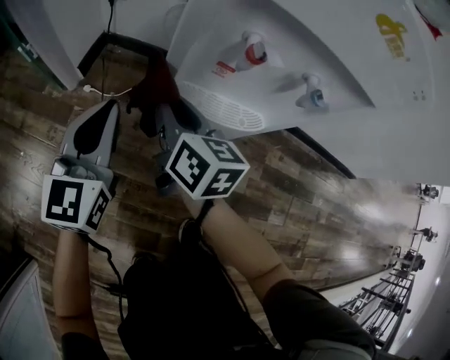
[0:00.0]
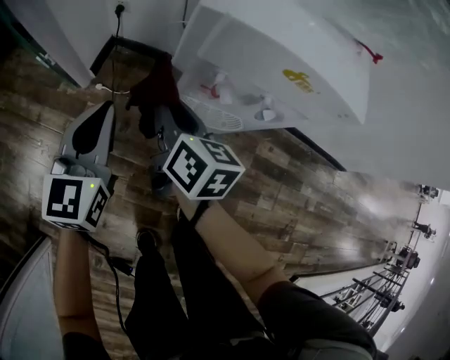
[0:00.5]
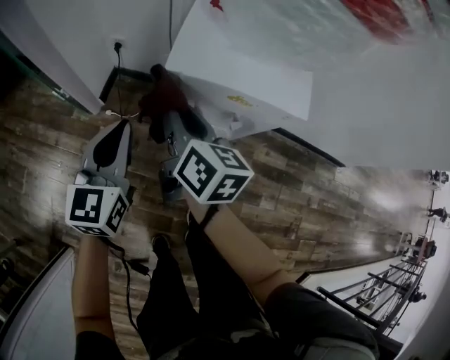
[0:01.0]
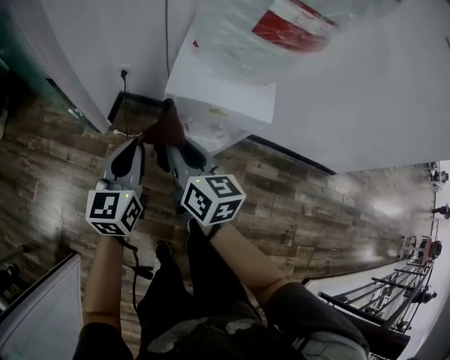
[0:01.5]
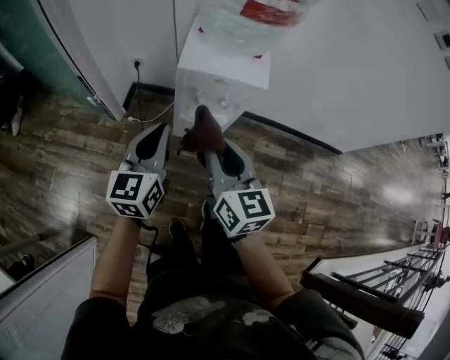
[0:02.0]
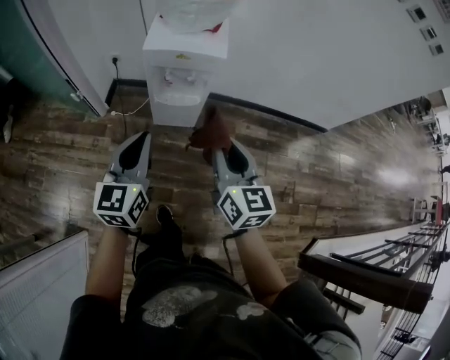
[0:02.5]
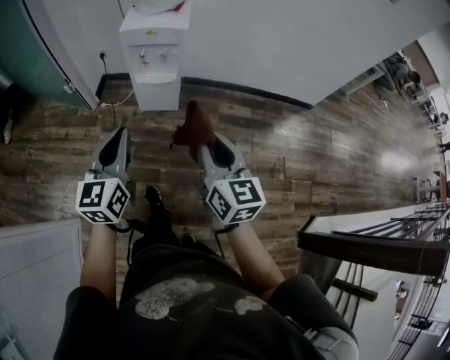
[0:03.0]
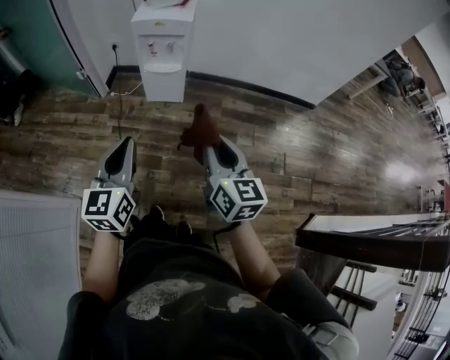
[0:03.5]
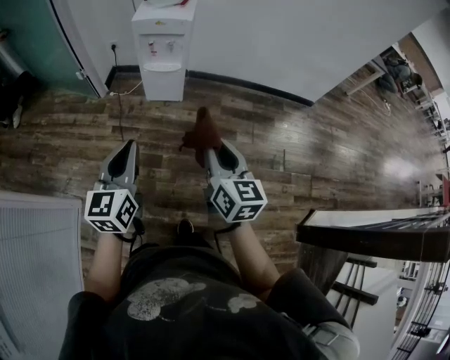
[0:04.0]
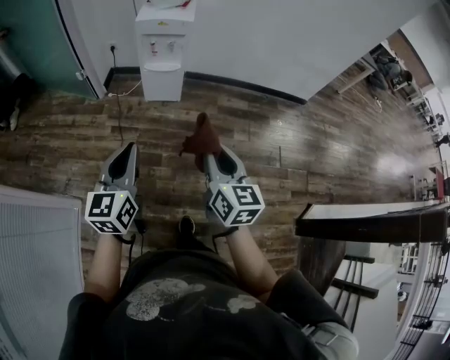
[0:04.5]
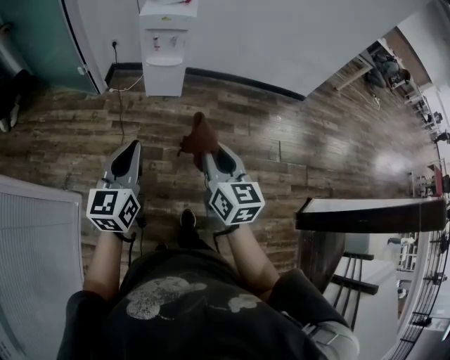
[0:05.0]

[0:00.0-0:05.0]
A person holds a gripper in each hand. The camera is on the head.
0:00.0 to 0:02.5: The left gripper travels upward and backward by about 50 cm; the right gripper travels upward, backward and to the right by about 60 cm, and turns by about 30 degrees.
0:02.5 to 0:05.0: The pair of grippers is taken backward, approximately 40 cm.

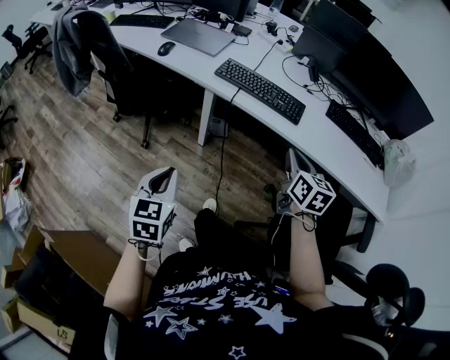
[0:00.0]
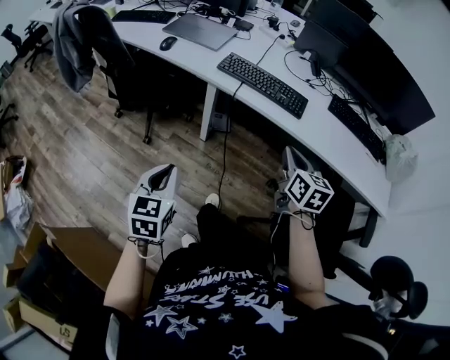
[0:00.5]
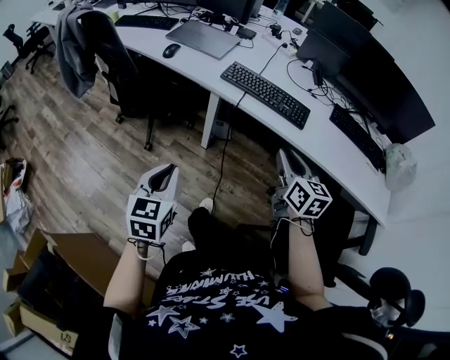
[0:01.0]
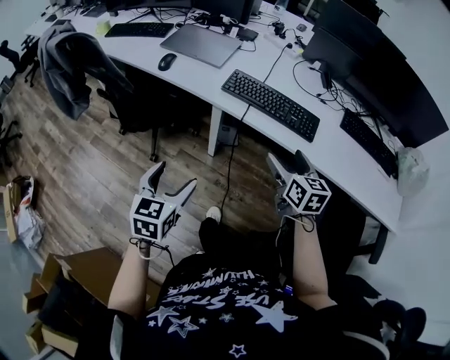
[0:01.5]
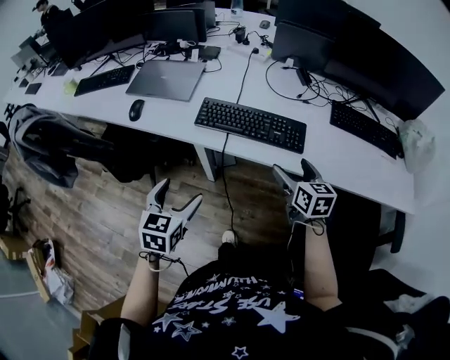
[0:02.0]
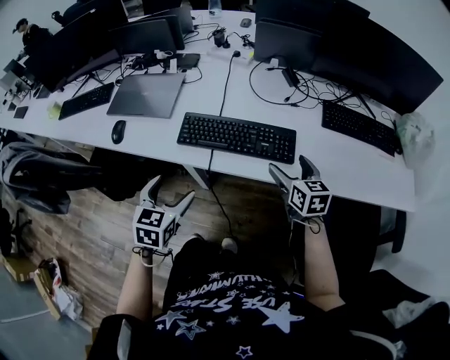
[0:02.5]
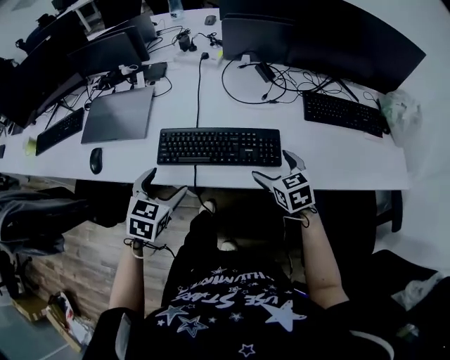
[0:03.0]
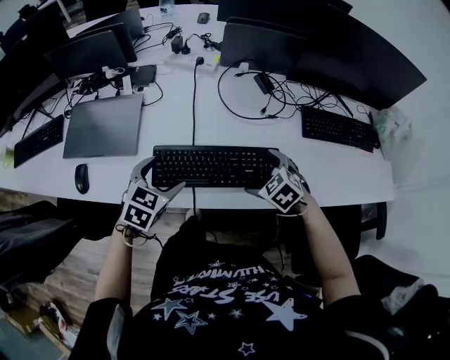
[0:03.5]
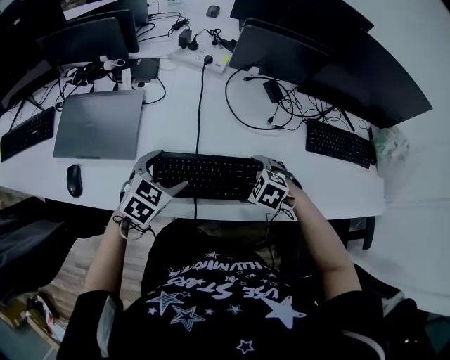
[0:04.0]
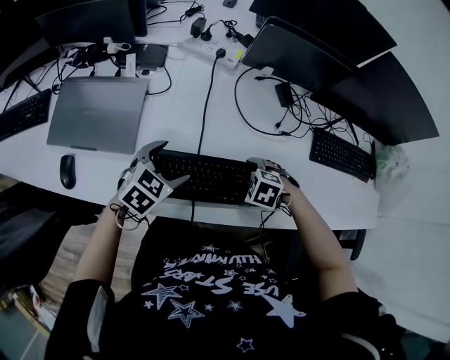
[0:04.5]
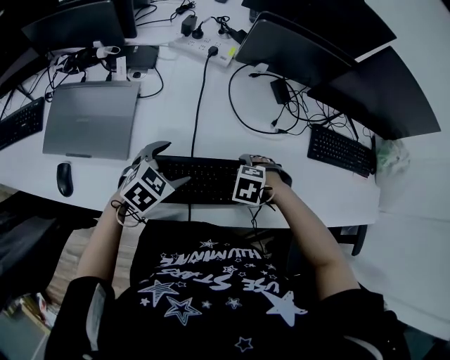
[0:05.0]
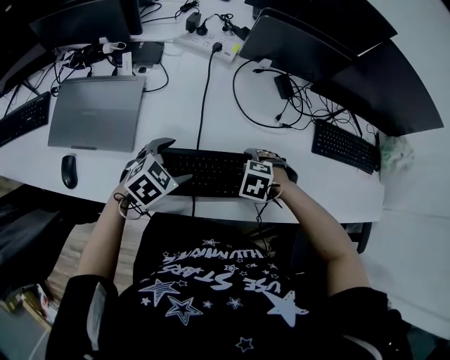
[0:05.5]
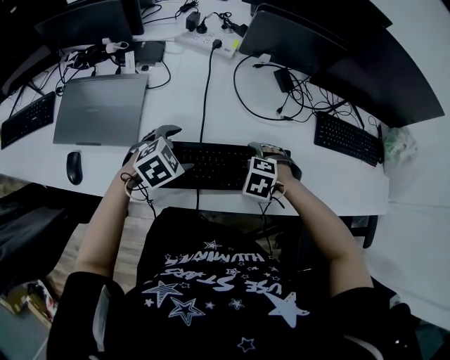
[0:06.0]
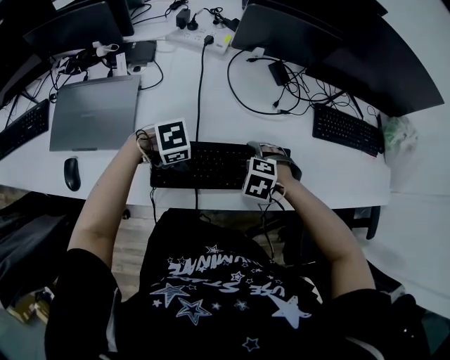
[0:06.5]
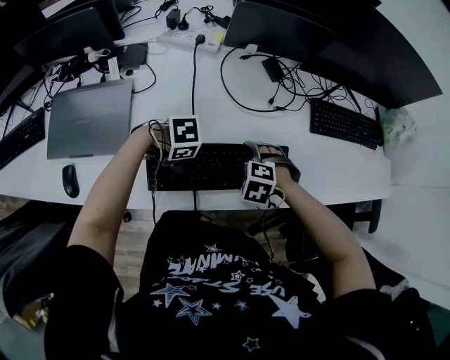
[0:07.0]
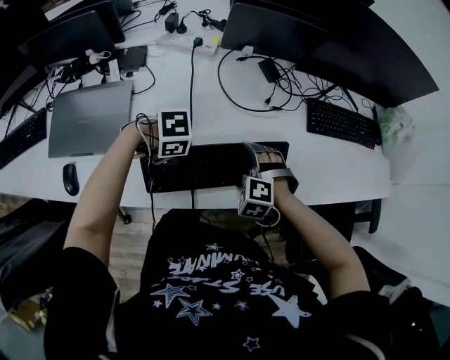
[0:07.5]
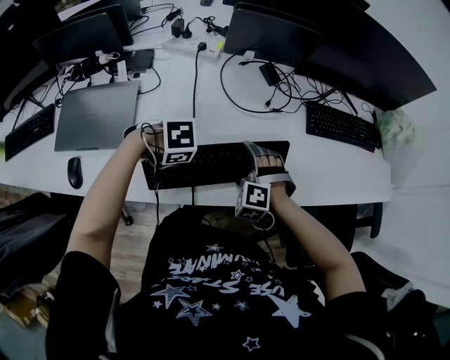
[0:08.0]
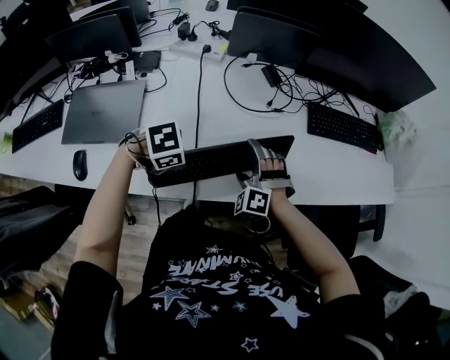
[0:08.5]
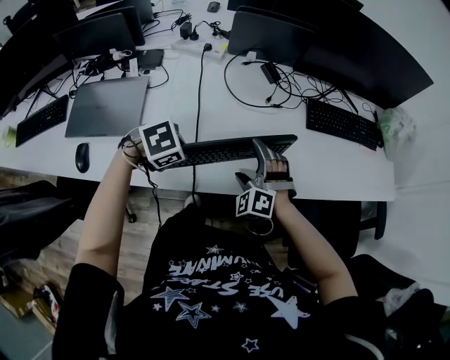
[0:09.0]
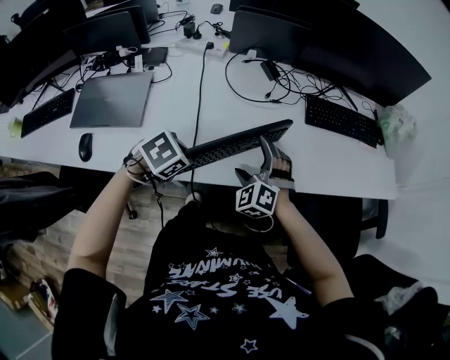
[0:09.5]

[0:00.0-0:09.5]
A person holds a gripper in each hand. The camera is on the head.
0:00.0 to 0:02.0: Both grippers travel together forward, approximately 20 cm. The right gripper opens its fingers. Meanwhile the left gripper opens.
0:02.0 to 0:04.0: The right gripper changes place by approximately 20 cm, and tips its fingers downward by approximately 50 degrees. The left gripper moves about 35 cm, and changes its angle by approximately 40 degrees.
0:04.0 to 0:05.5: The right gripper moves downward, some 5 cm.
0:05.5 to 0:07.5: The left gripper turns by approximately 50 degrees, and closes up; the right gripper heads upward, covering roughly 5 cm, and rotates roughly 20 degrees.
0:07.5 to 0:09.5: The left gripper shifts by some 10 cm, and turns by roughly 40 degrees, while the right gripper is displaced upward by about 5 cm, and tips its fingers upward by roughly 30 degrees.

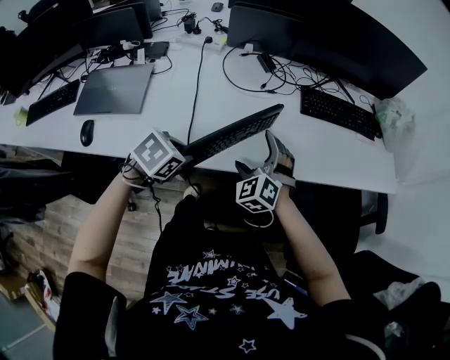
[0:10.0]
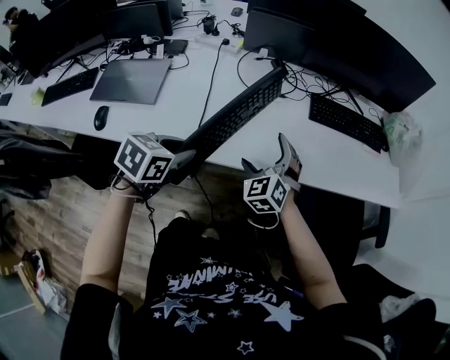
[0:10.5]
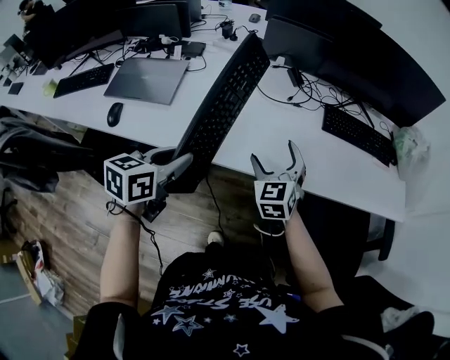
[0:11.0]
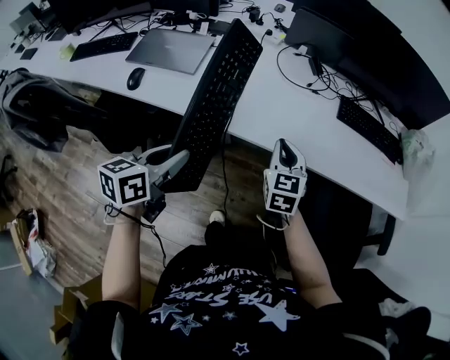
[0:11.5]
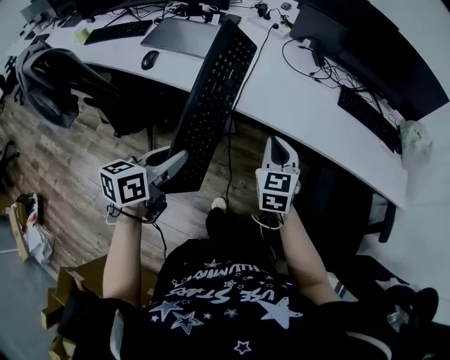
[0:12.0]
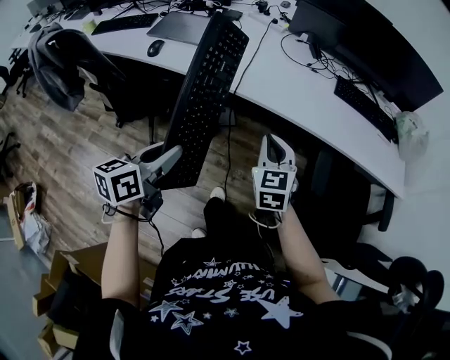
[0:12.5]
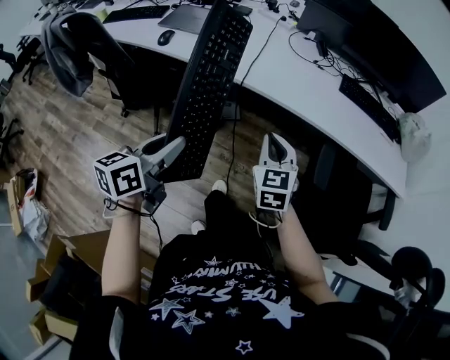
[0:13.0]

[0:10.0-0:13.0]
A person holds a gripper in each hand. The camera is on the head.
0:10.0 to 0:11.5: The left gripper heads backward and upward, covering some 20 cm, and angles its fingers upward, by some 40 degrees. Meanwhile the right gripper is displaced backward by roughly 10 cm, rotates approximately 40 degrees, and closes up.
0:11.5 to 0:13.0: Both grippers move backward, approximately 25 cm.

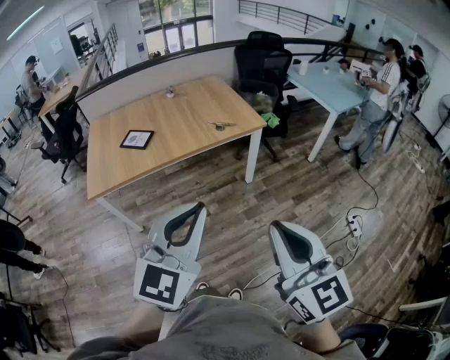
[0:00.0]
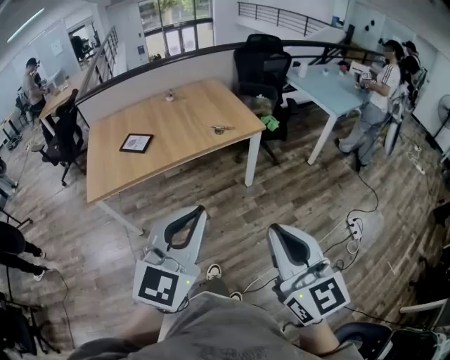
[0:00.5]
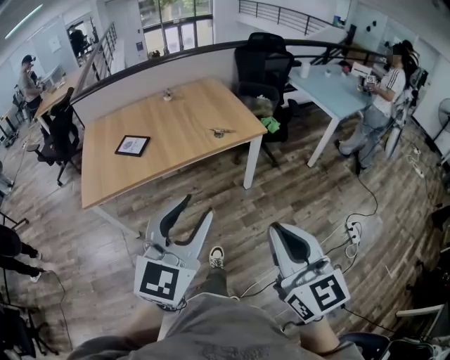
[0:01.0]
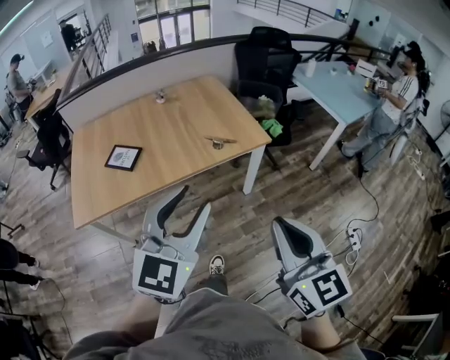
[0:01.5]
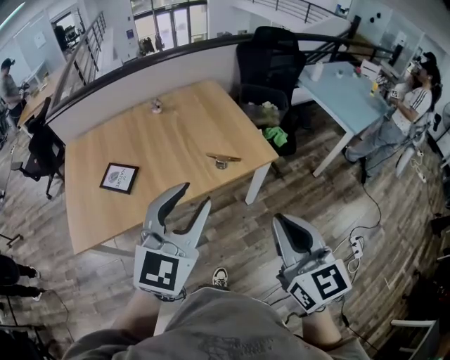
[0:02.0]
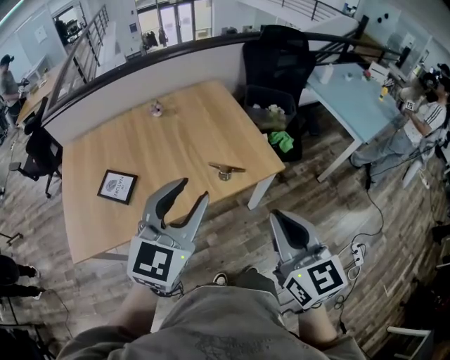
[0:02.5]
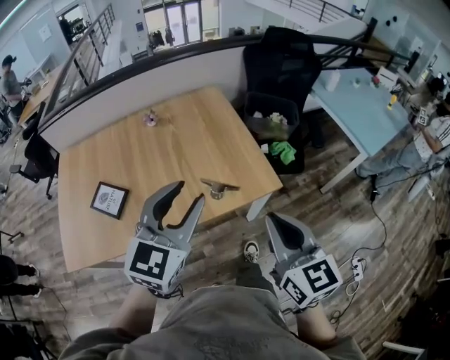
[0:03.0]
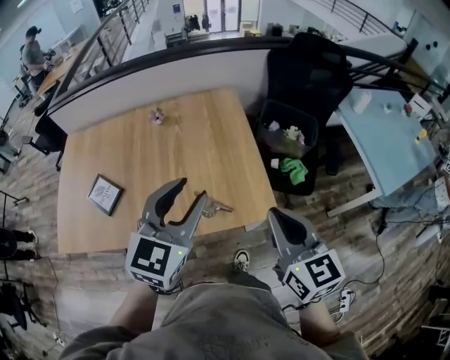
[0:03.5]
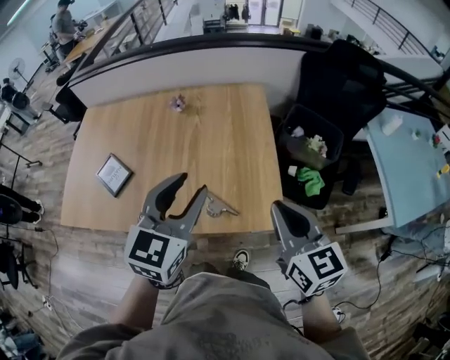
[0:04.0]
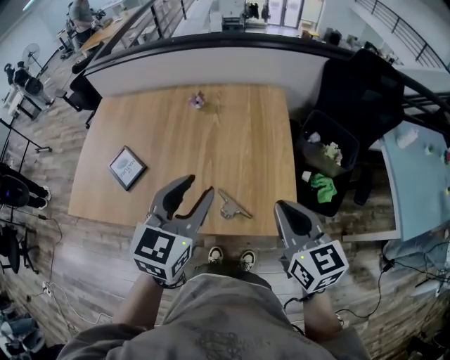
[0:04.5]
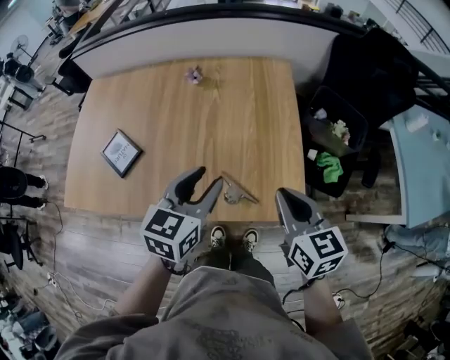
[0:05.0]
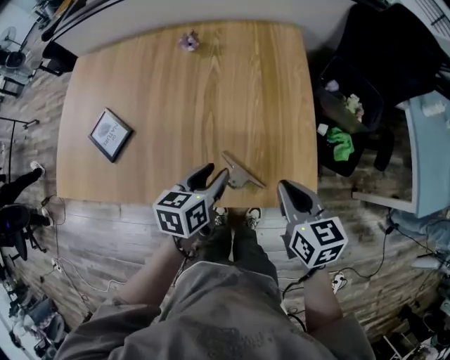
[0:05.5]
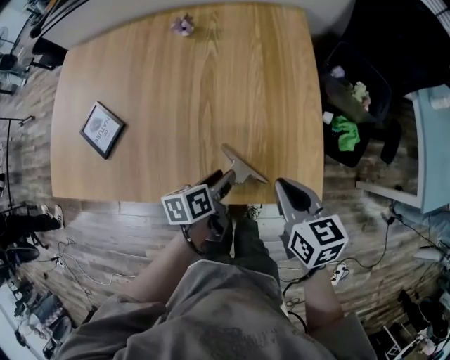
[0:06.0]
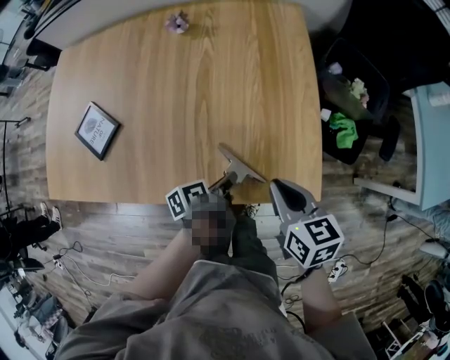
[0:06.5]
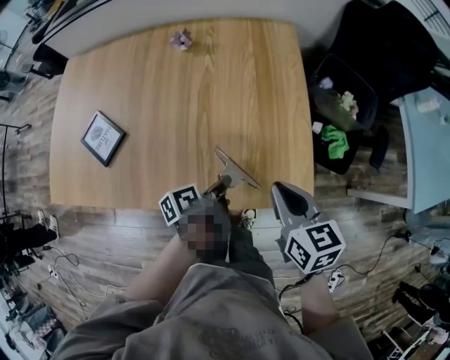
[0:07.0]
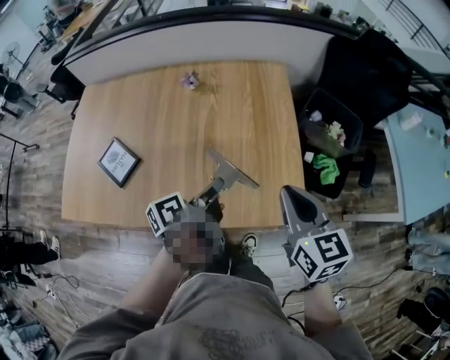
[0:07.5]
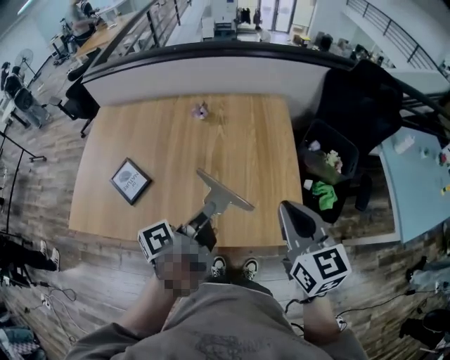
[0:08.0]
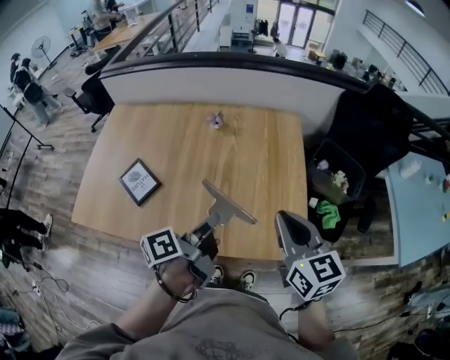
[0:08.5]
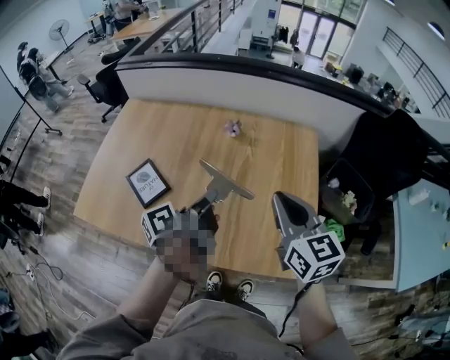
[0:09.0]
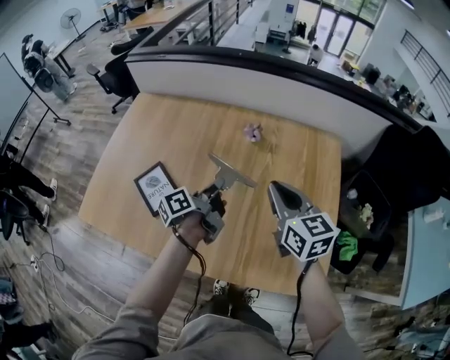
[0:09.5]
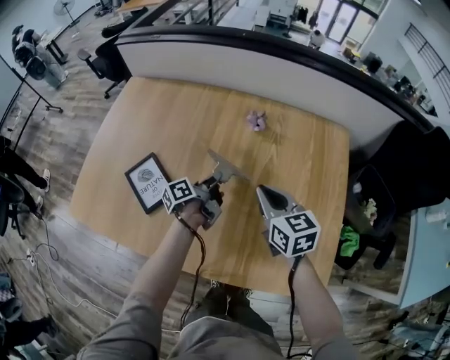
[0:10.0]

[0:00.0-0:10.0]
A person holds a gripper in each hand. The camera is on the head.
0:00.0 to 0:02.0: Both grippers travel together forward, approximately 40 cm. The left gripper opens.
0:02.0 to 0:04.0: Both grippers move forward, roughly 35 cm. The left gripper rotates approximately 30 degrees, while the right gripper changes its angle by some 30 degrees.
0:04.0 to 0:06.0: The right gripper heads downward, covering some 20 cm, and swivels roughly 30 degrees. Meanwhile the left gripper is displaced downward by about 35 cm, and twists approximately 60 degrees counterclockwise, seen from behind.
0:06.0 to 0:08.0: Both grippers travel together upward, about 25 cm. The right gripper turns by approximately 30 degrees. Meanwhile the left gripper changes its angle by approximately 40 degrees, and closes.
0:08.0 to 0:10.0: The right gripper travels forward, to the left and downward by about 35 cm, and swivels about 20 degrees, while the left gripper travels forward, downward and to the left by approximately 40 cm.
